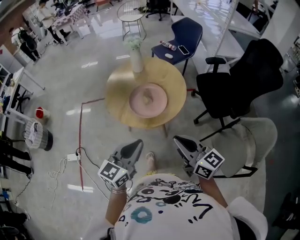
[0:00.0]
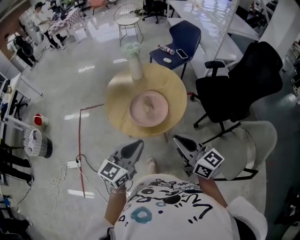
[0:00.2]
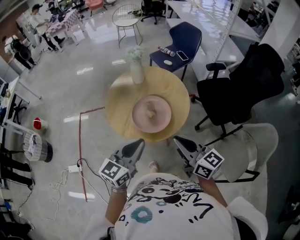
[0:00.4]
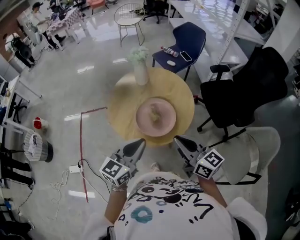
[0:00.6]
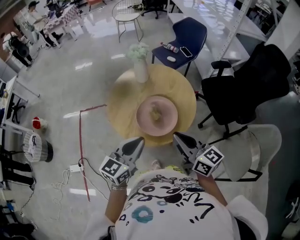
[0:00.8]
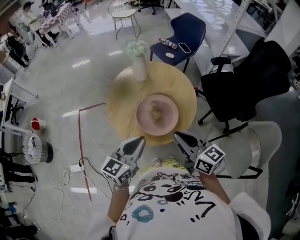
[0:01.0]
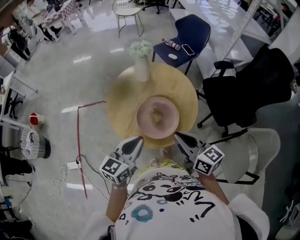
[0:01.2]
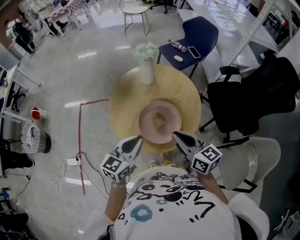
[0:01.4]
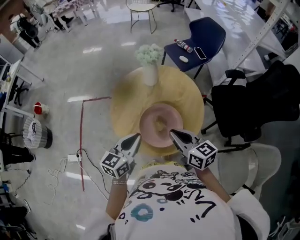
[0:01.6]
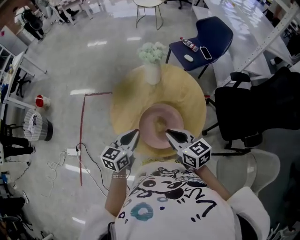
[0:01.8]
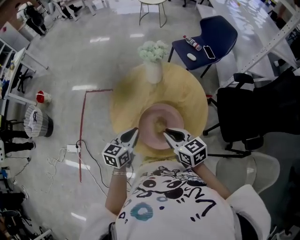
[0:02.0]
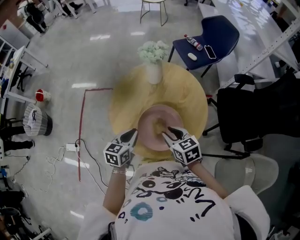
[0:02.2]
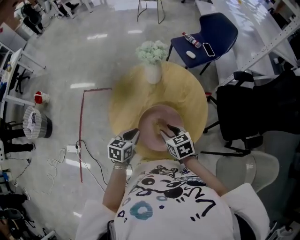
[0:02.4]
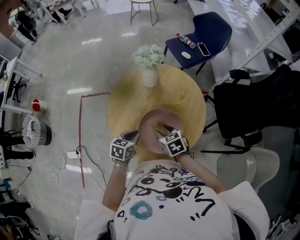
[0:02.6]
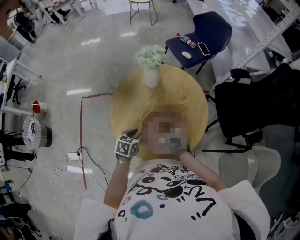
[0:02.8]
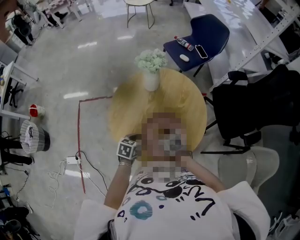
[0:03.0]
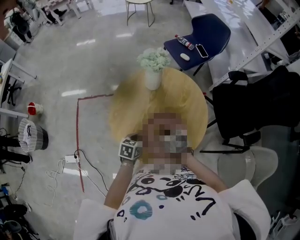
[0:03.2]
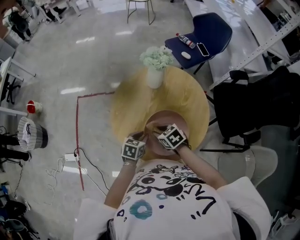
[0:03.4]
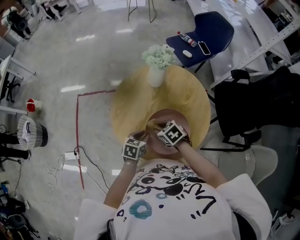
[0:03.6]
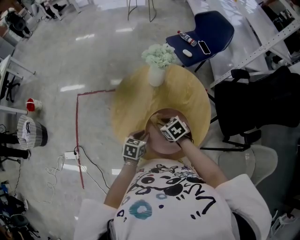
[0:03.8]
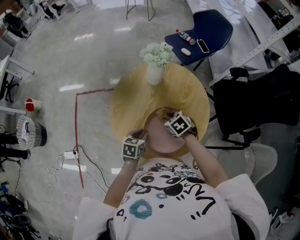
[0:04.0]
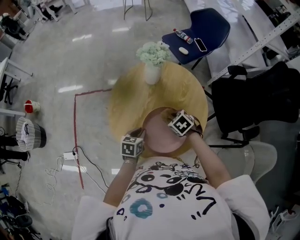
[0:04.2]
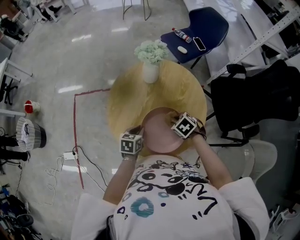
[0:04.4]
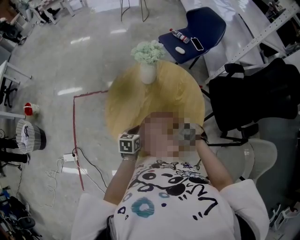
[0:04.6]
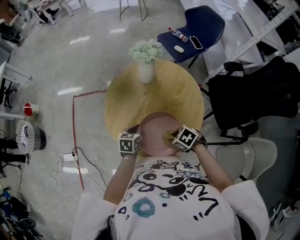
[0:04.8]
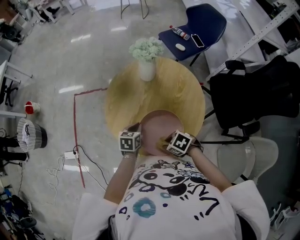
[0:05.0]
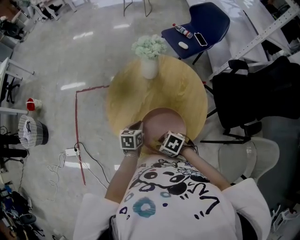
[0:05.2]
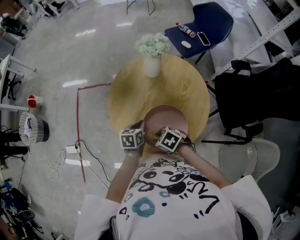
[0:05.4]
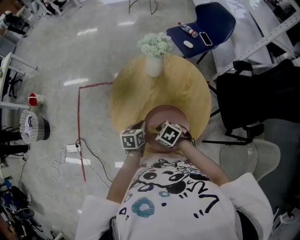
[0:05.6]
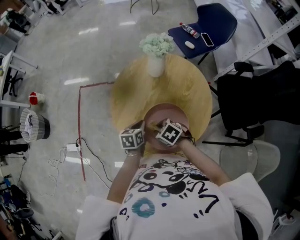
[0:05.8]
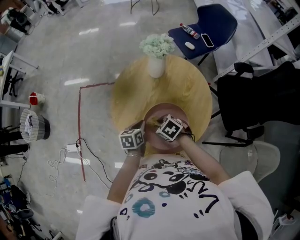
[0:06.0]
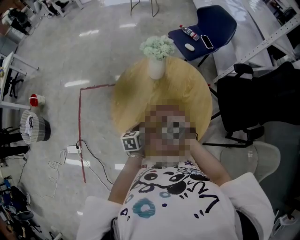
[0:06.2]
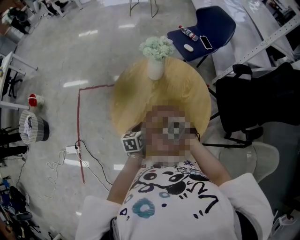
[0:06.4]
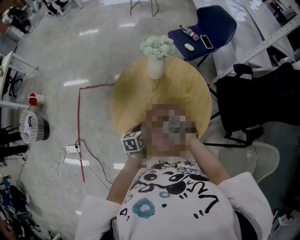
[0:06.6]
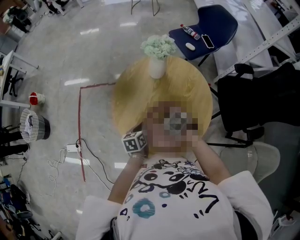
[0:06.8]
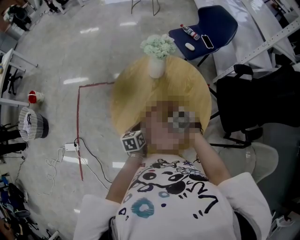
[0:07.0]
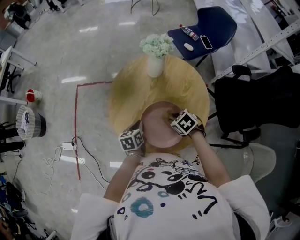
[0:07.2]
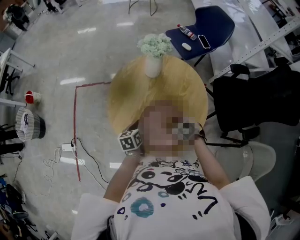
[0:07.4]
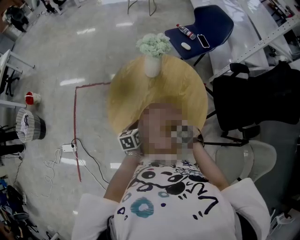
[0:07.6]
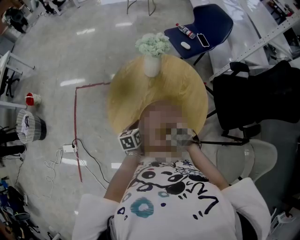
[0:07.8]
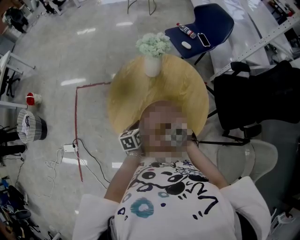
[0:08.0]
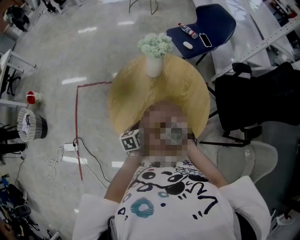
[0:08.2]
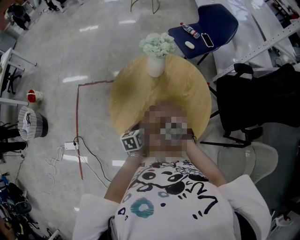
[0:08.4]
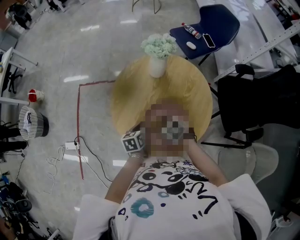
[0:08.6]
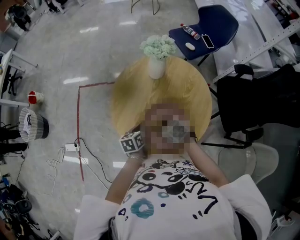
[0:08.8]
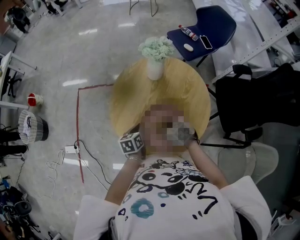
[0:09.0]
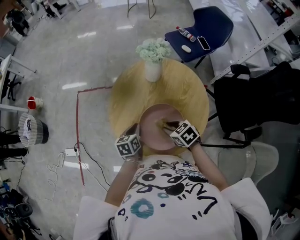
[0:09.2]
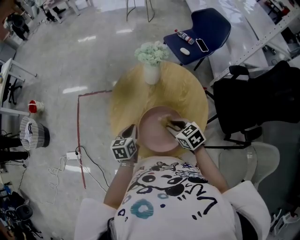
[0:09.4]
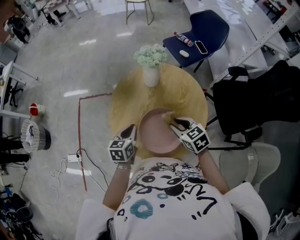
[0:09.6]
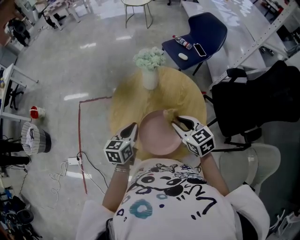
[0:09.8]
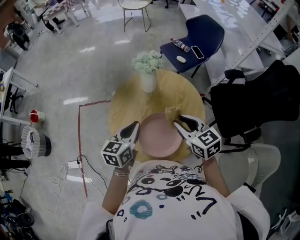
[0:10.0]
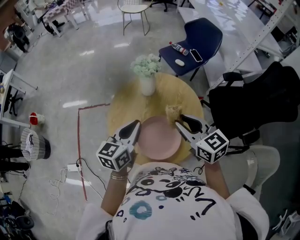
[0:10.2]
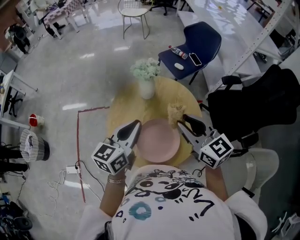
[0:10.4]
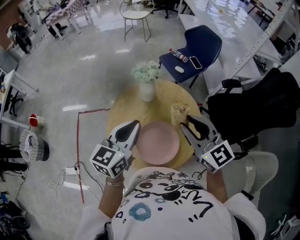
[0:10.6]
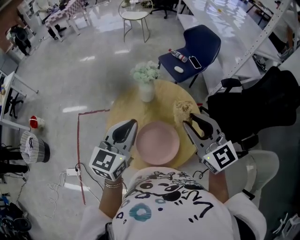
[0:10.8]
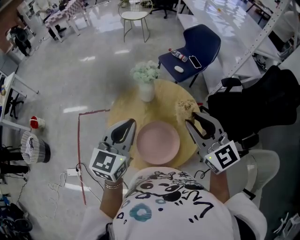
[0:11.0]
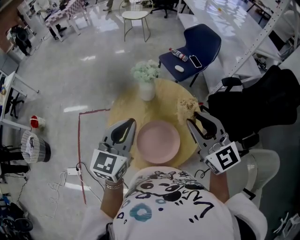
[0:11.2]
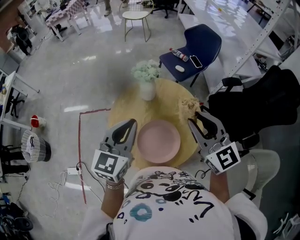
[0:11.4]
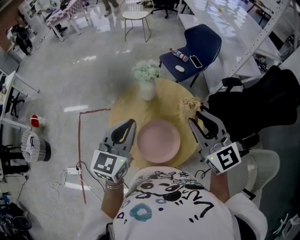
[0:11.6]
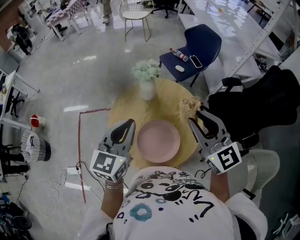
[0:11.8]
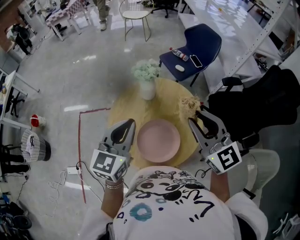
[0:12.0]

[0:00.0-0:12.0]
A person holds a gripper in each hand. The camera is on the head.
0:00.0 to 0:01.6: The grippers both shift forward by some 25 cm.
0:01.6 to 0:03.0: The grippers both shift downward by roughly 20 cm. The left gripper points its fingers about 30 degrees further downward, and opens; the right gripper angles its fingers downward, by approximately 40 degrees, and opens.
0:03.0 to 0:04.4: The right gripper ends up approximately 5 cm from where it was, and changes its angle by about 20 degrees.
0:04.4 to 0:06.0: The right gripper ends up roughly 10 cm from where it was.
0:06.0 to 0:07.6: The right gripper shifts approximately 10 cm backward and to the right.
0:07.6 to 0:09.0: The right gripper shifts some 5 cm forward.
0:09.0 to 0:10.4: The grippers both shift upward by roughly 30 cm. The right gripper points its fingers approximately 40 degrees further upward; the left gripper angles its fingers upward, by some 30 degrees.
0:10.4 to 0:12.0: The right gripper shifts some 5 cm upward. Meanwhile the left gripper changes place by some 5 cm, and changes its angle by some 20 degrees.

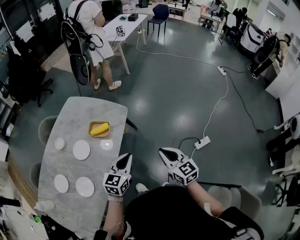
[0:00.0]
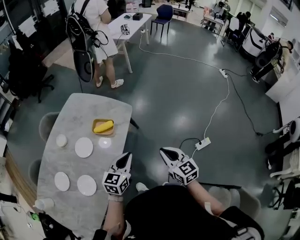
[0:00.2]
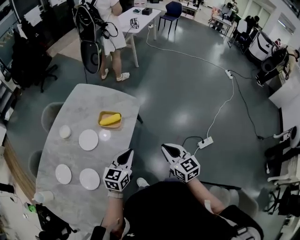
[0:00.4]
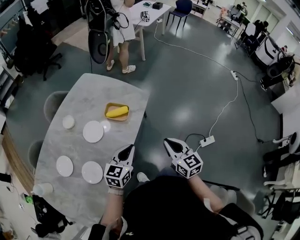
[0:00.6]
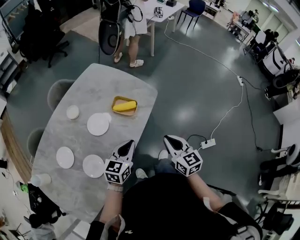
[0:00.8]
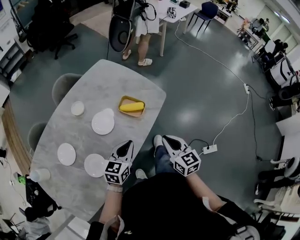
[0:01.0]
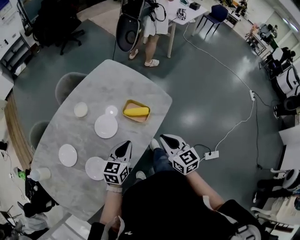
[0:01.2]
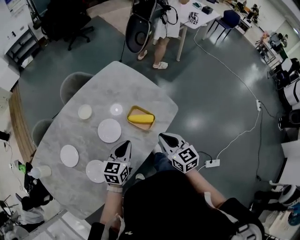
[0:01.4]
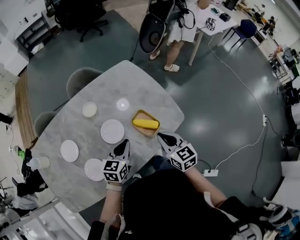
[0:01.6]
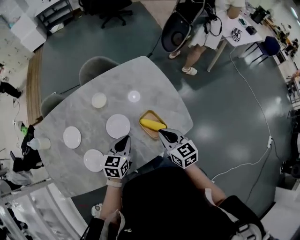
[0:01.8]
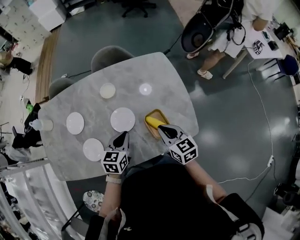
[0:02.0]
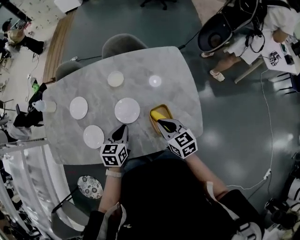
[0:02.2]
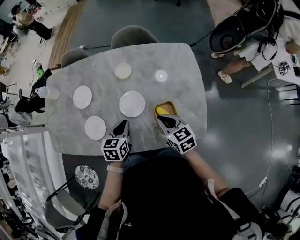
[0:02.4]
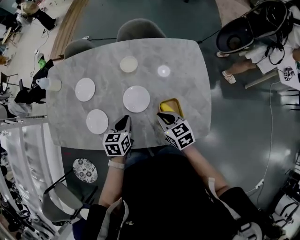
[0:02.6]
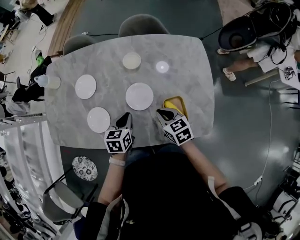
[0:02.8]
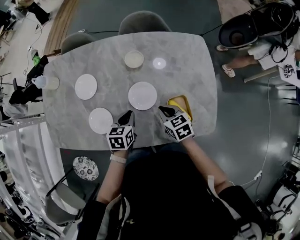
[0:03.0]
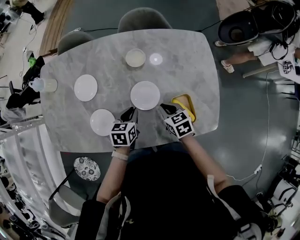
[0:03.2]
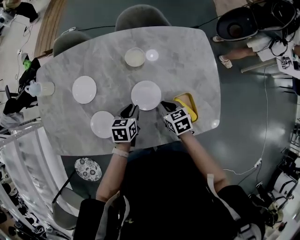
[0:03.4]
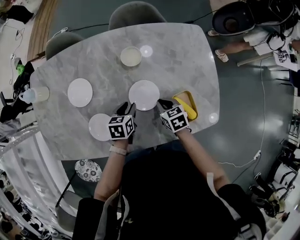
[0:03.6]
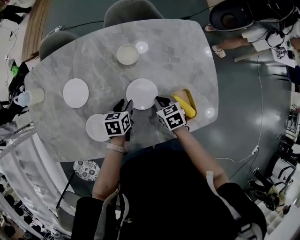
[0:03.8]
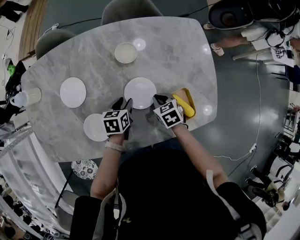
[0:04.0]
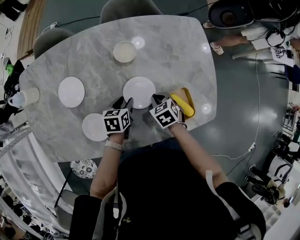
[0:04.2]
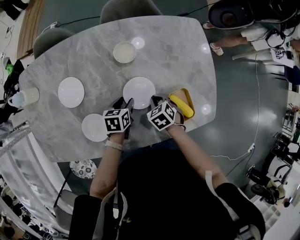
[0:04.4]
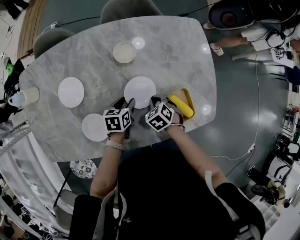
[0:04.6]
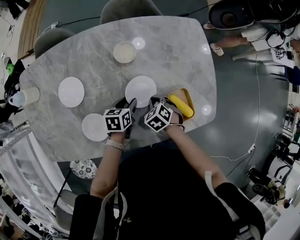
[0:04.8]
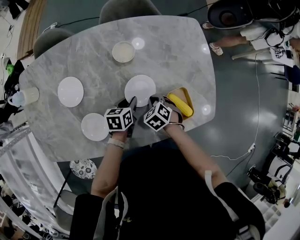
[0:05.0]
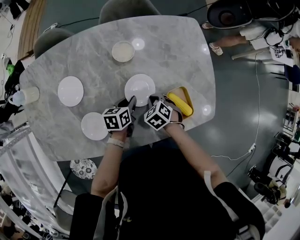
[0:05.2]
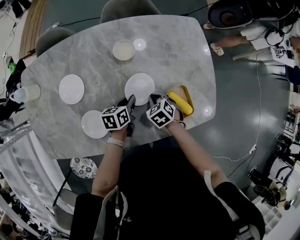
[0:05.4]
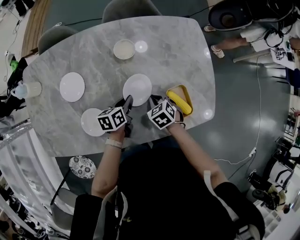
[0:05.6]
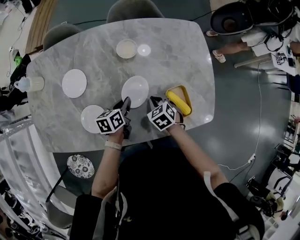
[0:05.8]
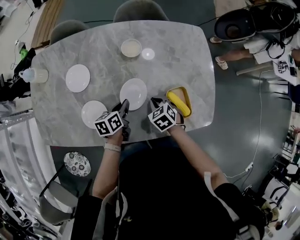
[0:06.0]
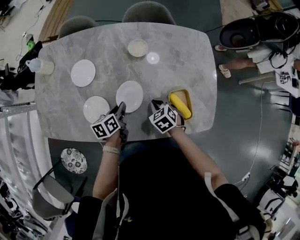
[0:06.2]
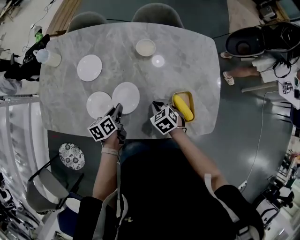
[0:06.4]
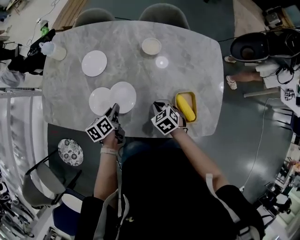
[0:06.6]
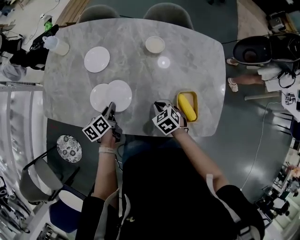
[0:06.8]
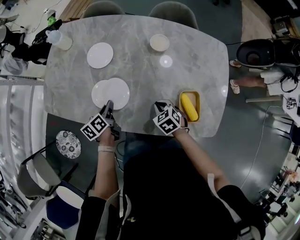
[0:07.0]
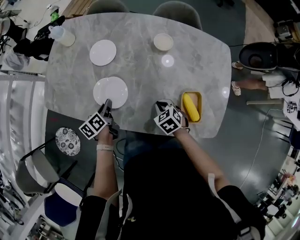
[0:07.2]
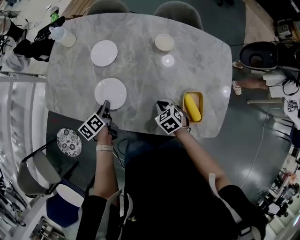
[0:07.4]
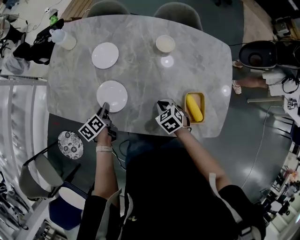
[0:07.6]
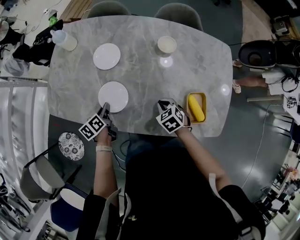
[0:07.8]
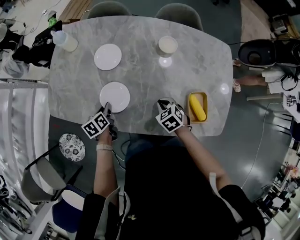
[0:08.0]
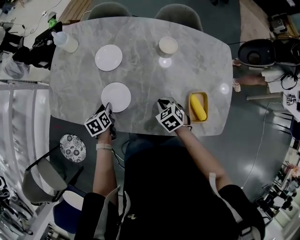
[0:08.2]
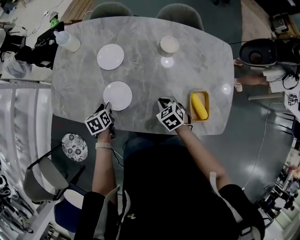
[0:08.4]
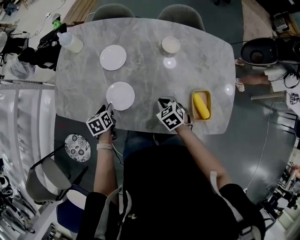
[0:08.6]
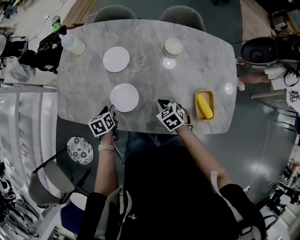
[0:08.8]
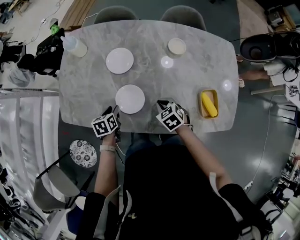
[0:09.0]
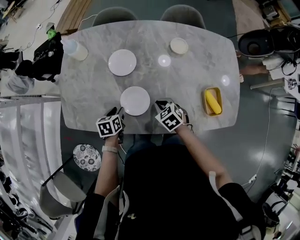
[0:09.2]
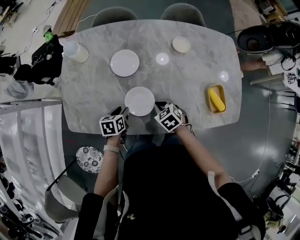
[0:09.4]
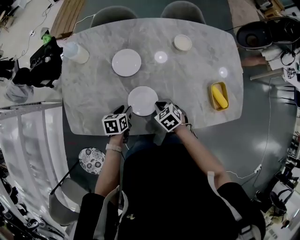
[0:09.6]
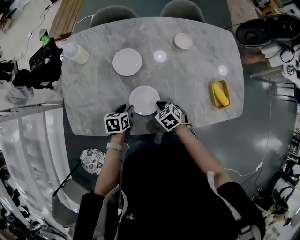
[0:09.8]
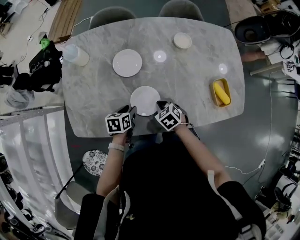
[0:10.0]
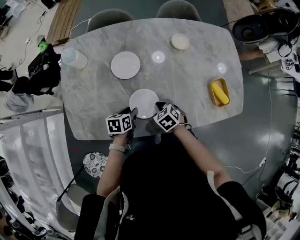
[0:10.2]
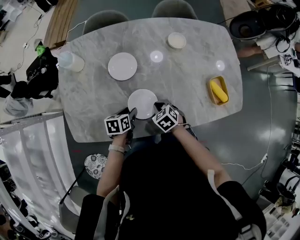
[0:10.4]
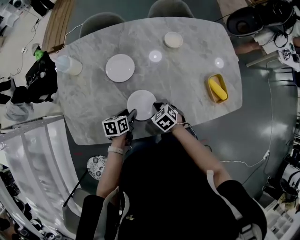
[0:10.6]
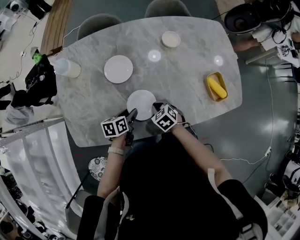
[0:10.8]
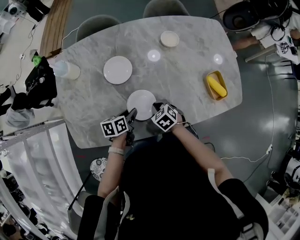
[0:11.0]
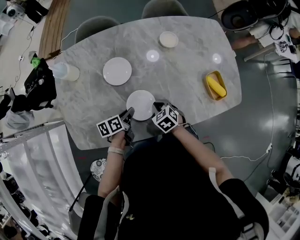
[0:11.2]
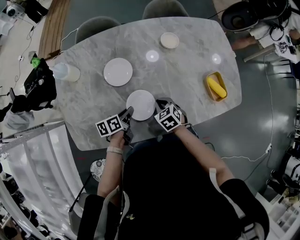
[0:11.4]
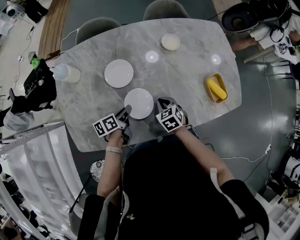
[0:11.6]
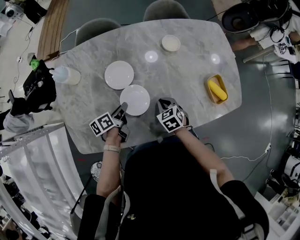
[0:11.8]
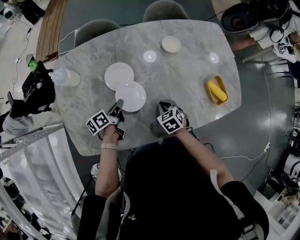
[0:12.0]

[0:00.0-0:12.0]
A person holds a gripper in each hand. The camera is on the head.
0:00.0 to 0:01.6: The right gripper changes place by about 35 cm, and rotates roughly 30 degrees. The left gripper moves roughly 30 cm, and swivels approximately 40 degrees.
0:01.6 to 0:03.0: The left gripper moves approximately 20 cm, and turns by approximately 40 degrees, while the right gripper moves roughly 25 cm, and turns by about 40 degrees.
0:03.0 to 0:04.4: The left gripper is displaced downward and forward by roughly 10 cm, and opens its fingers; the right gripper is displaced downward by approximately 10 cm, and rotates roughly 30 degrees.
0:04.4 to 0:06.0: The left gripper moves approximately 5 cm, rotates roughly 20 degrees, and closes up.
0:06.0 to 0:07.6: The left gripper shifts by some 25 cm, and changes its angle by roughly 30 degrees. The right gripper shifts by some 10 cm.
0:07.6 to 0:09.0: The left gripper is displaced to the left by approximately 5 cm, swivels roughly 30 degrees, and opens its fingers. The right gripper heads to the left, covering some 10 cm.
0:09.0 to 0:10.4: The right gripper moves to the left, roughly 10 cm. Meanwhile the left gripper changes its angle by roughly 30 degrees.
0:10.4 to 0:12.0: The right gripper ends up approximately 5 cm from where it was. Meanwhile the left gripper shifts roughly 10 cm forward and to the left, turns by some 40 degrees, and closes its fingers.
